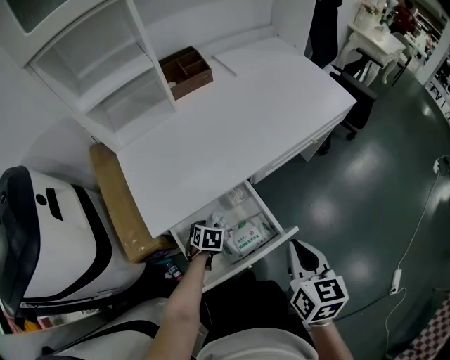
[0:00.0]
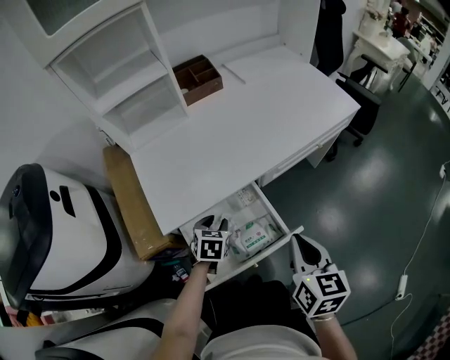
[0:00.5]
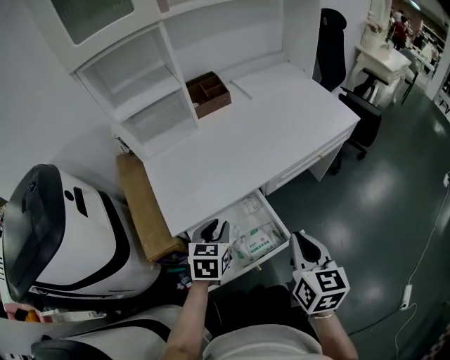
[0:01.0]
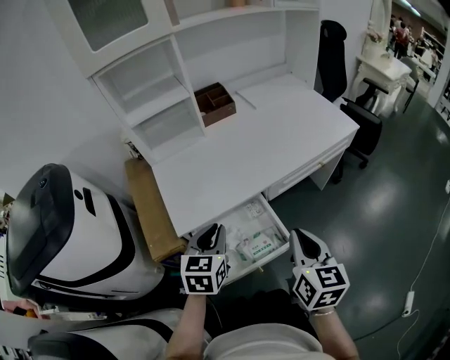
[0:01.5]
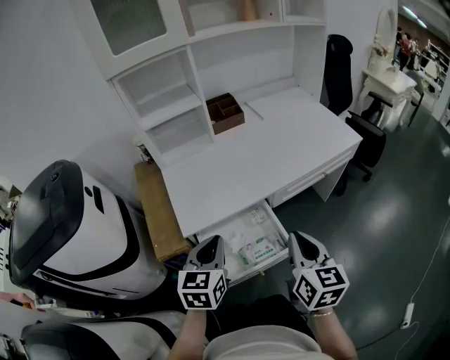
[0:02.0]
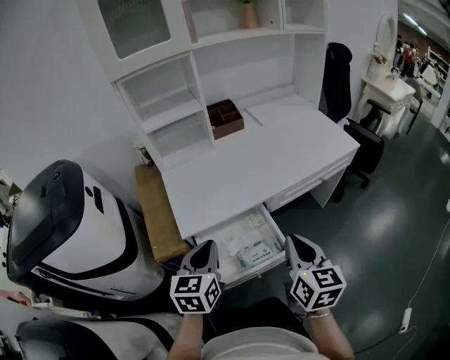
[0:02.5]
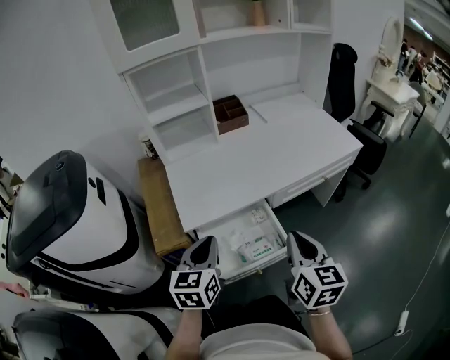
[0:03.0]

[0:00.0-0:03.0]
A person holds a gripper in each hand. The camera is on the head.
0:00.0 to 0:01.5: The right gripper travels upward by about 5 cm, while the left gripper travels upward by approximately 30 cm, tips its fingers upward by roughly 40 degrees, and closes.
0:01.5 to 0:03.0: The left gripper travels backward by roughly 5 cm.

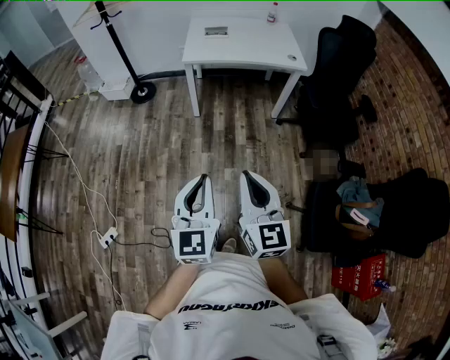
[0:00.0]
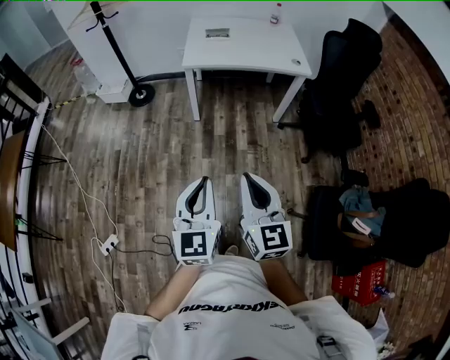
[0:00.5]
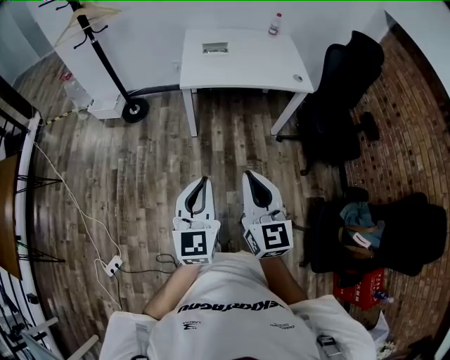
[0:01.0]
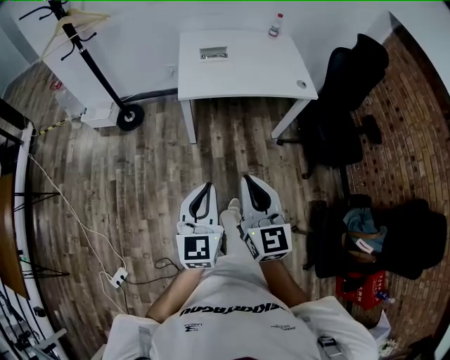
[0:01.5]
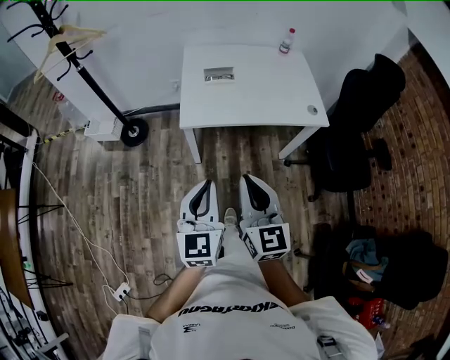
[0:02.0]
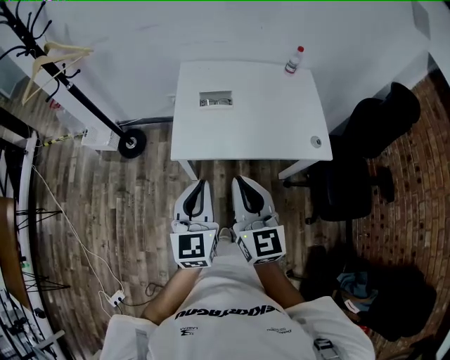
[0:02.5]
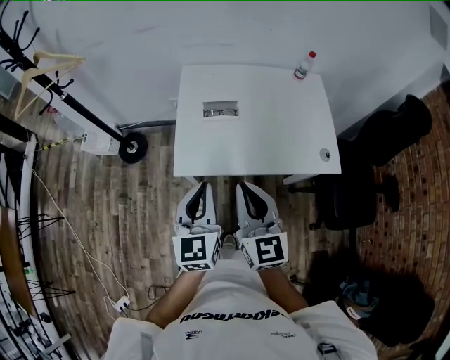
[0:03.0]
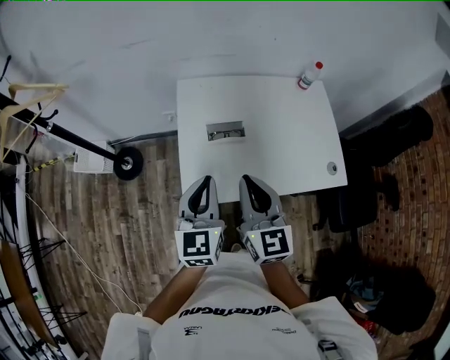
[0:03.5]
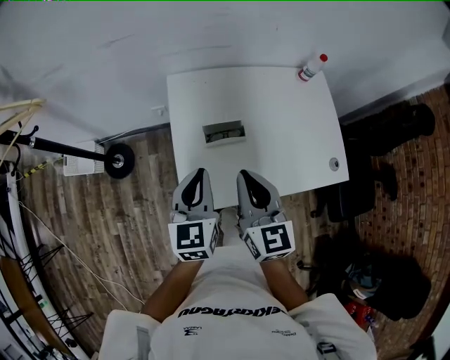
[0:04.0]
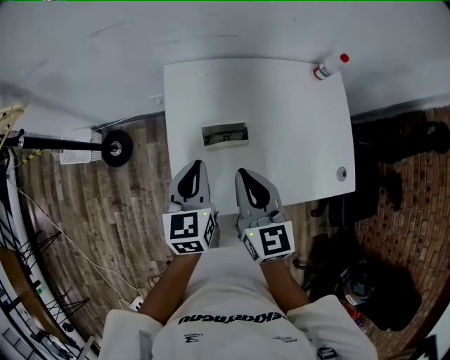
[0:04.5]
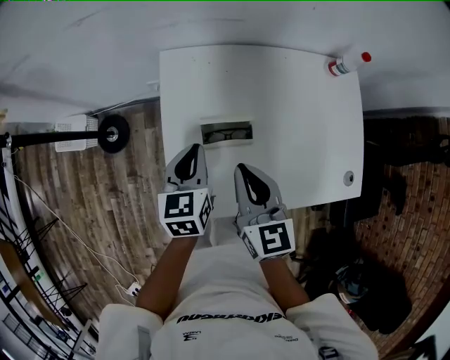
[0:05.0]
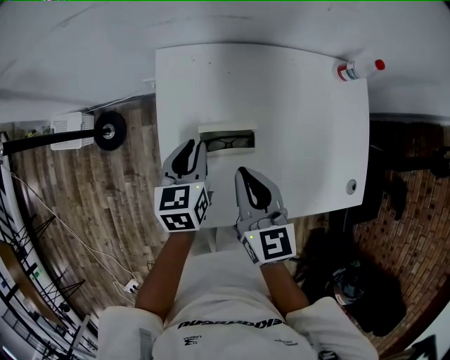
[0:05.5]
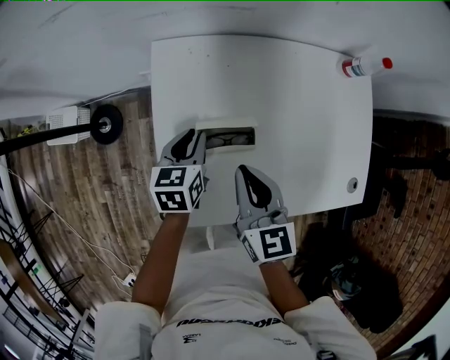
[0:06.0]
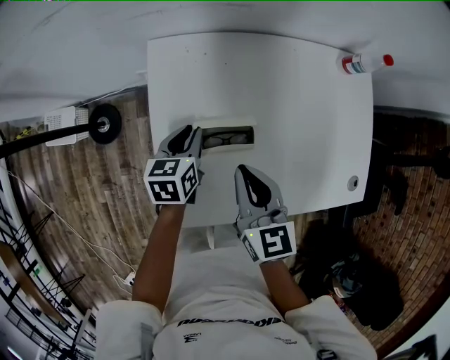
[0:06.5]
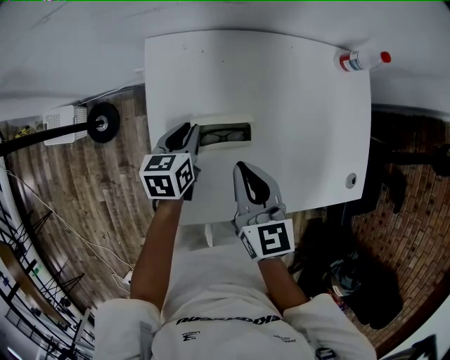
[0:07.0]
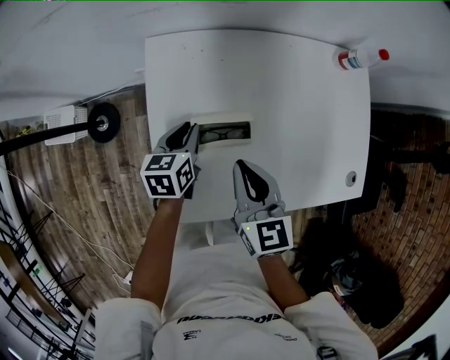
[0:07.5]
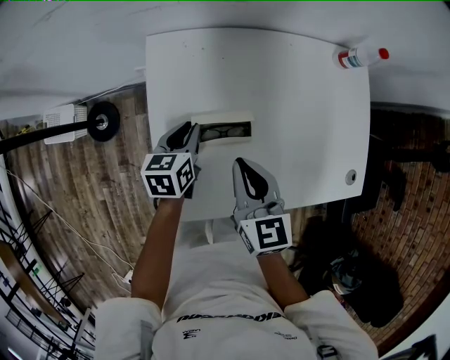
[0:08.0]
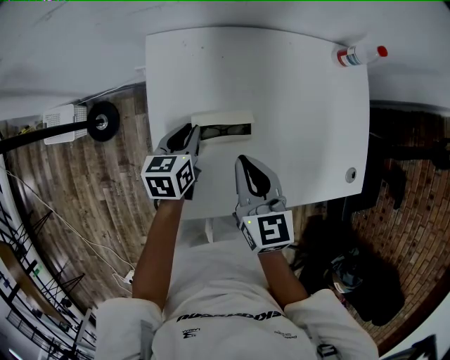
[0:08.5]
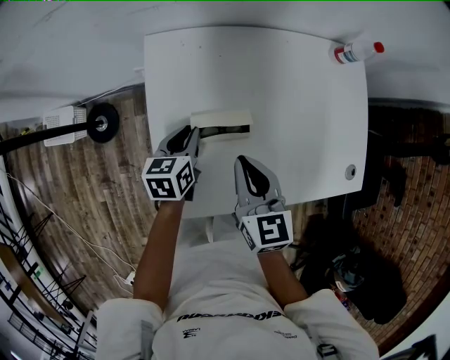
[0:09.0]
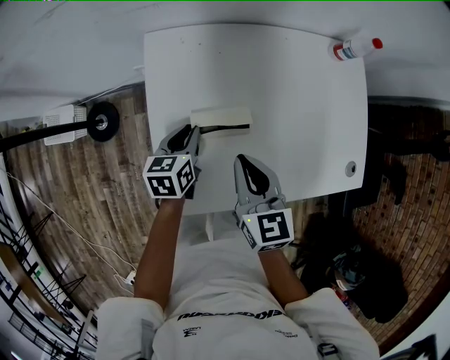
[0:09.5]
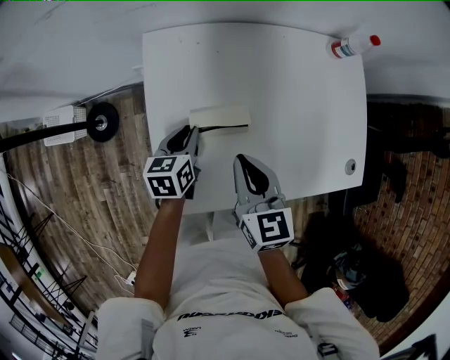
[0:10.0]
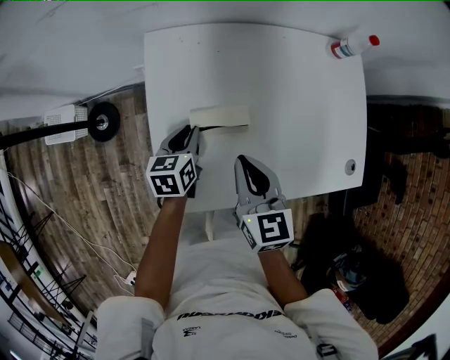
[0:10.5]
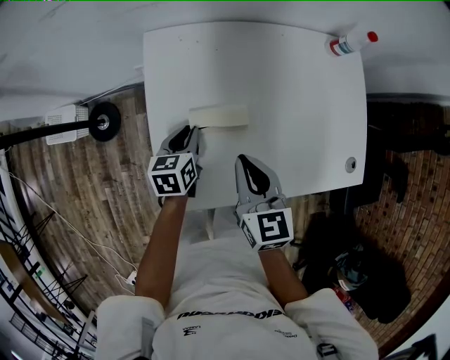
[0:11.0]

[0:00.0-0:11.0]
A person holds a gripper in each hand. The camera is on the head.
0:00.0 to 0:02.0: The two grippers travel together, forward, approximately 50 cm.
0:02.0 to 0:03.5: Both grippers are carried forward, about 40 cm.
0:03.5 to 0:05.5: The grippers both shift forward and downward by about 30 cm. The left gripper changes its angle by approximately 30 degrees.
0:05.5 to 0:07.5: The left gripper shifts about 5 cm downward.
0:07.5 to 0:11.0: The grippers stay close to where they were, moving slightly.

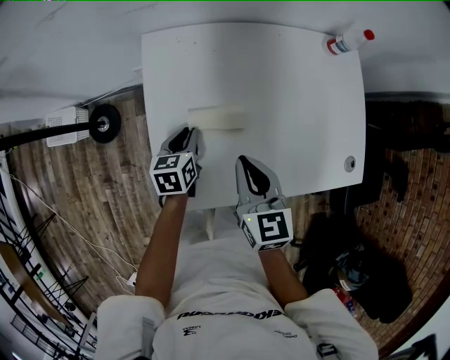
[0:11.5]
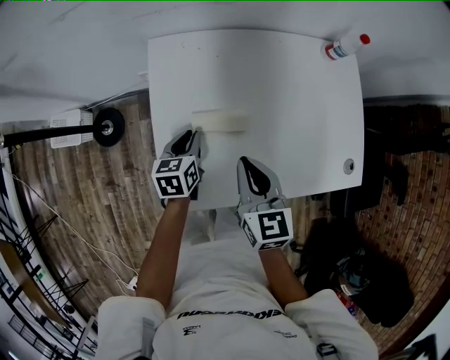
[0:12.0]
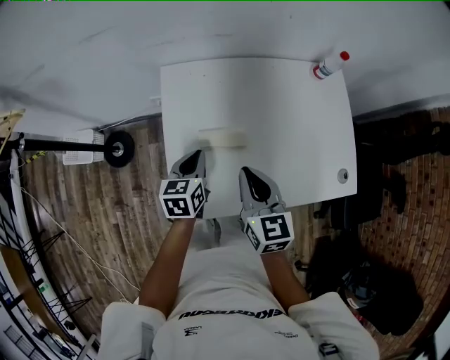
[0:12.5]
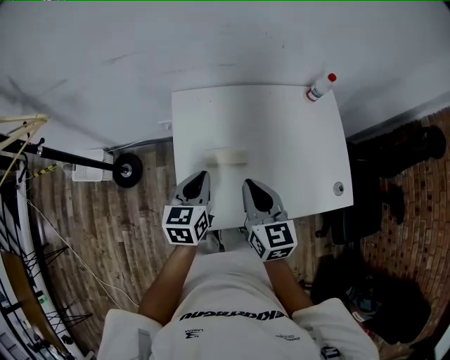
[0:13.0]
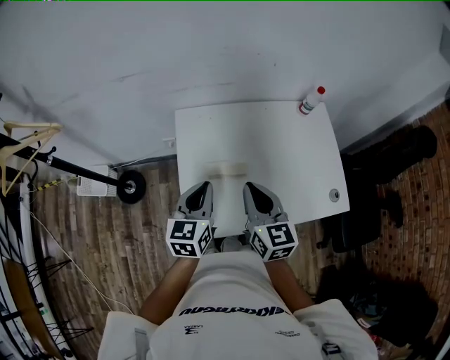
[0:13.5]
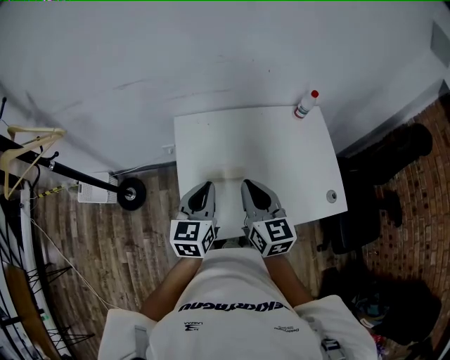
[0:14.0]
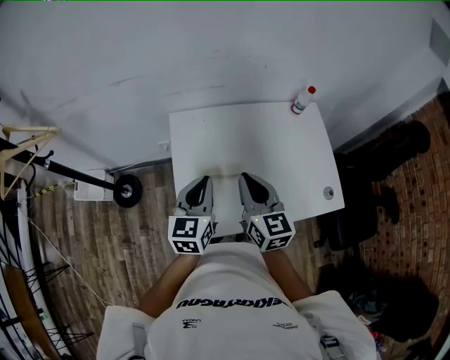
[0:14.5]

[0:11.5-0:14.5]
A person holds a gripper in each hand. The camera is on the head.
0:11.5 to 0:13.0: The left gripper heads upward, covering roughly 20 cm, while the right gripper moves upward, about 10 cm.
0:13.0 to 0:14.5: Both grippers travel together upward, some 5 cm.

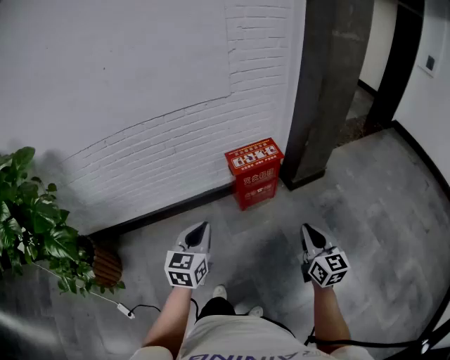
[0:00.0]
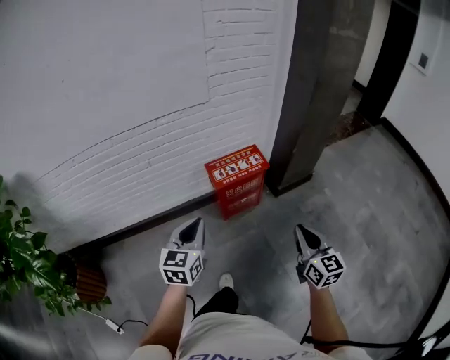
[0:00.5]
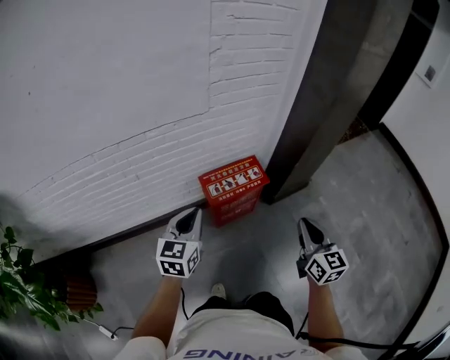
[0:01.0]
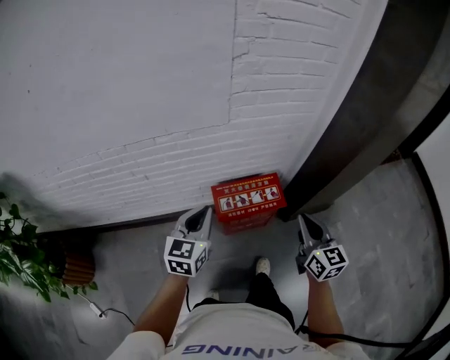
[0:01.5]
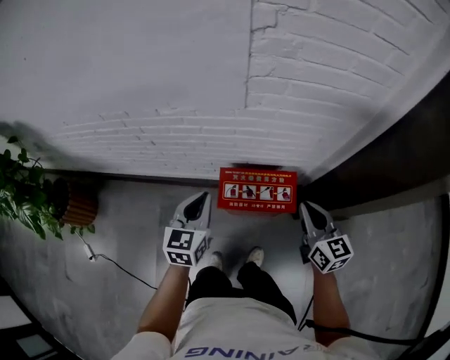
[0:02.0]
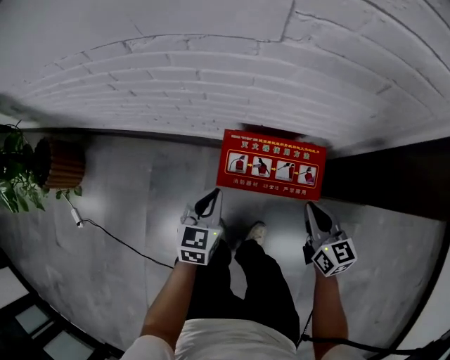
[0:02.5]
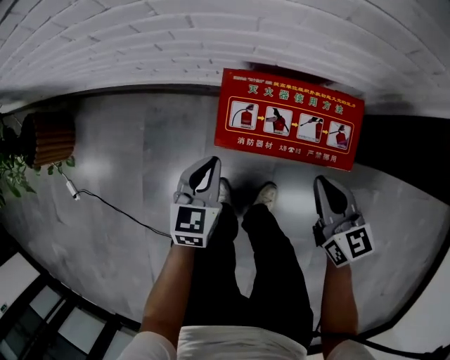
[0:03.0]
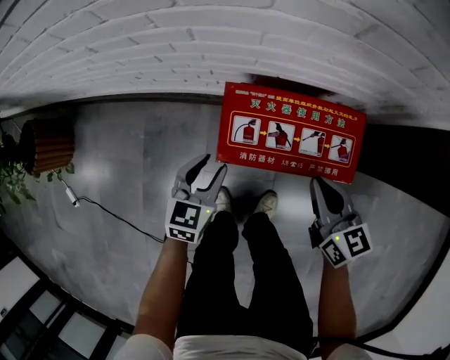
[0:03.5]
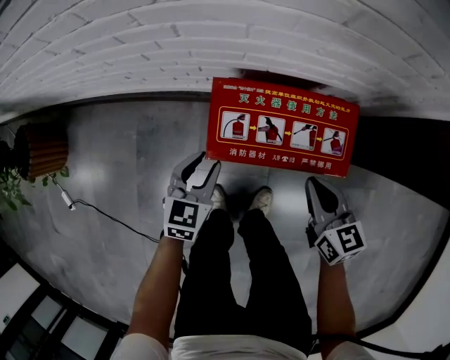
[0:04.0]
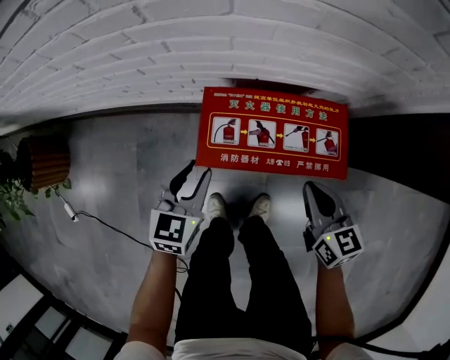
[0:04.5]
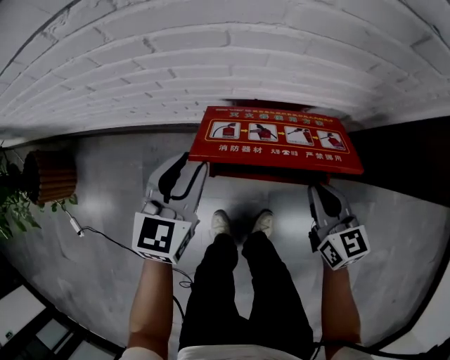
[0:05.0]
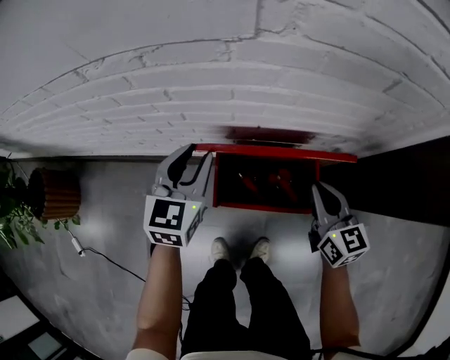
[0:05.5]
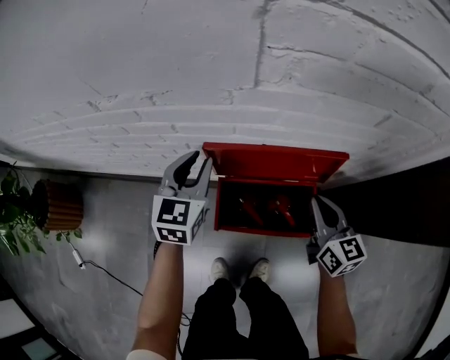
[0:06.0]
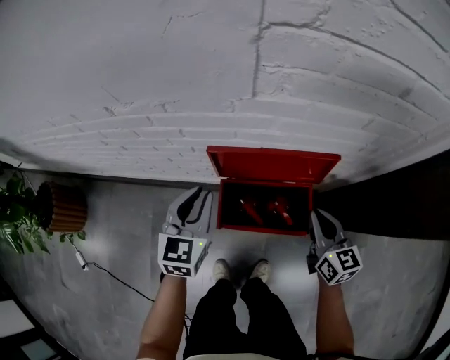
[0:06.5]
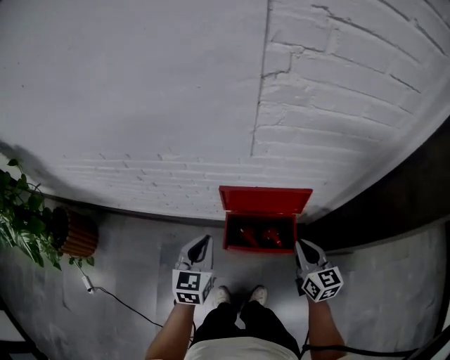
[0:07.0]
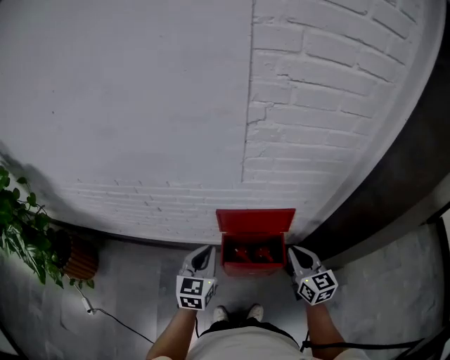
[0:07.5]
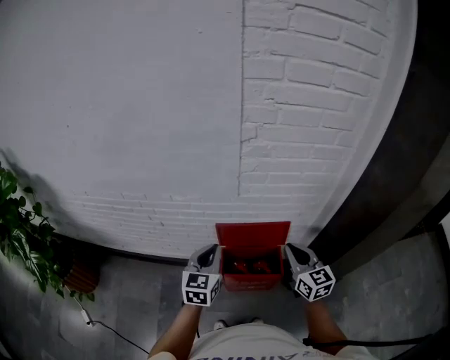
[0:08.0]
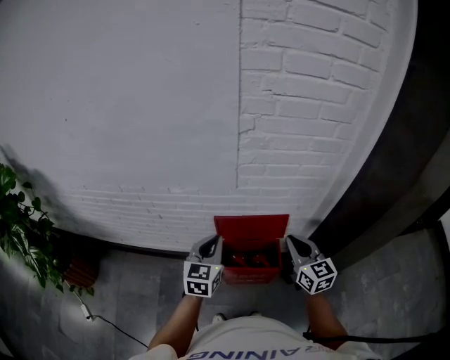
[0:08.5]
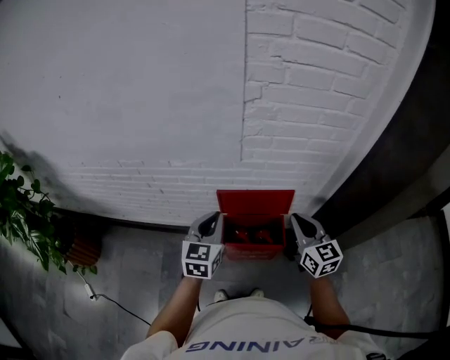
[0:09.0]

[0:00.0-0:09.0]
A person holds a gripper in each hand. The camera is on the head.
0:00.0 to 0:02.0: The pair of grippers is taken about 60 cm. The right gripper changes its angle by approximately 30 degrees. The left gripper turns by some 30 degrees.
0:02.0 to 0:04.5: The grippers both shift downward by some 30 cm. The left gripper opens its fingers.
0:04.5 to 0:07.0: Both grippers travel together upward, about 20 cm. The left gripper closes up.
0:07.0 to 0:09.0: The grippers both shift upward by approximately 15 cm.
